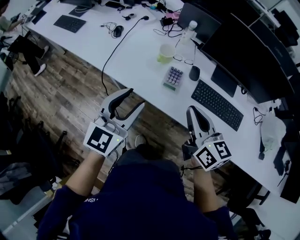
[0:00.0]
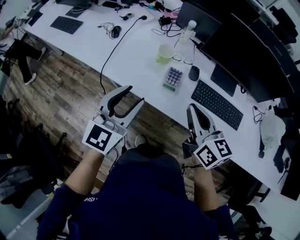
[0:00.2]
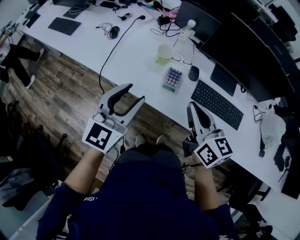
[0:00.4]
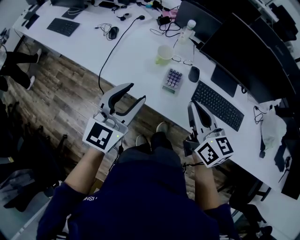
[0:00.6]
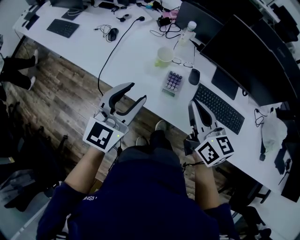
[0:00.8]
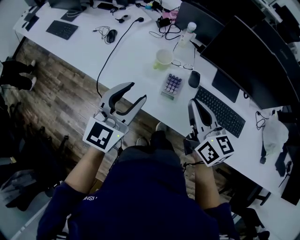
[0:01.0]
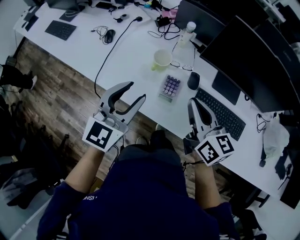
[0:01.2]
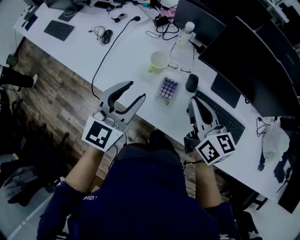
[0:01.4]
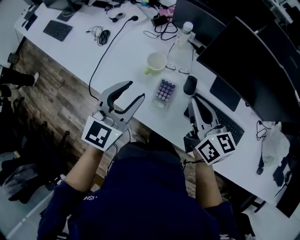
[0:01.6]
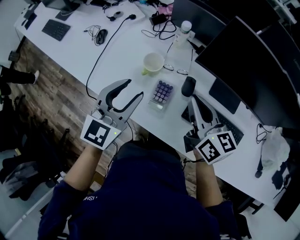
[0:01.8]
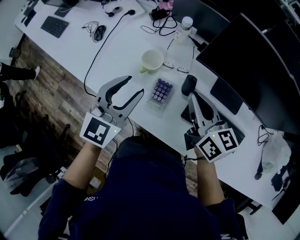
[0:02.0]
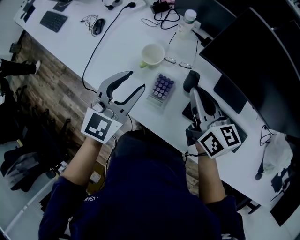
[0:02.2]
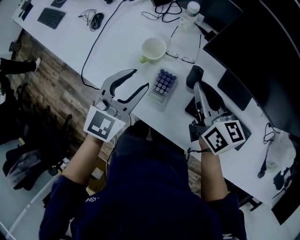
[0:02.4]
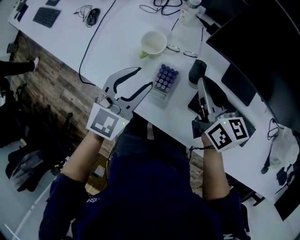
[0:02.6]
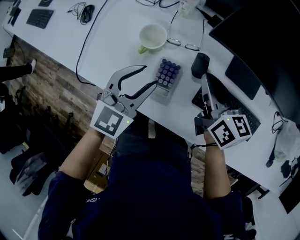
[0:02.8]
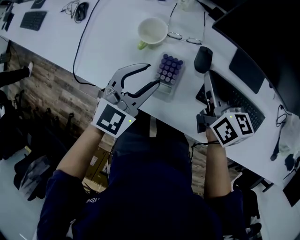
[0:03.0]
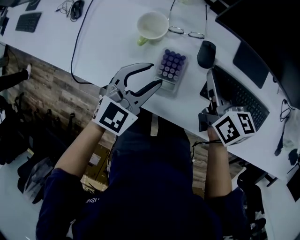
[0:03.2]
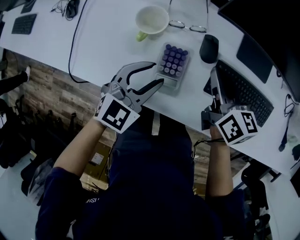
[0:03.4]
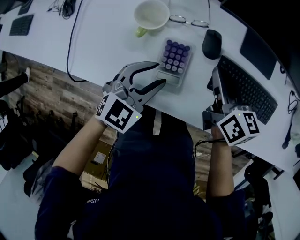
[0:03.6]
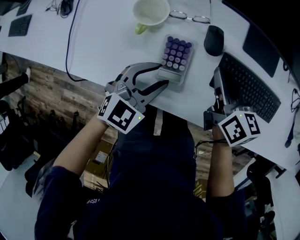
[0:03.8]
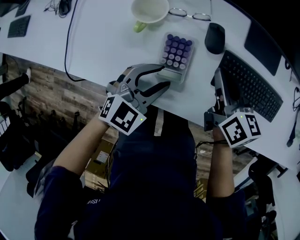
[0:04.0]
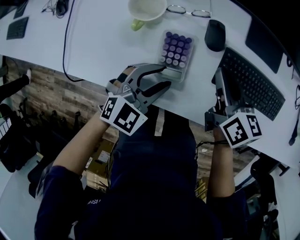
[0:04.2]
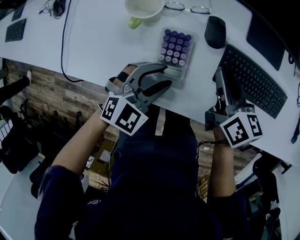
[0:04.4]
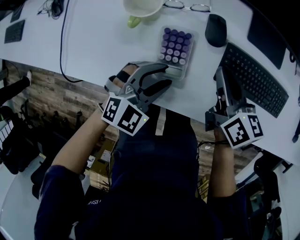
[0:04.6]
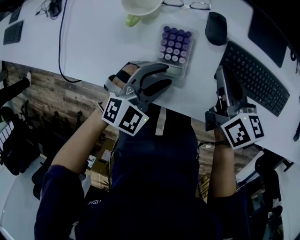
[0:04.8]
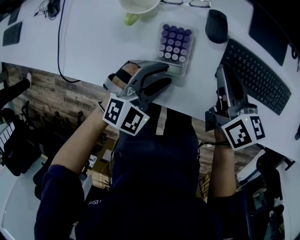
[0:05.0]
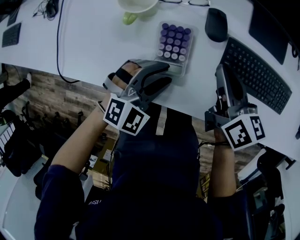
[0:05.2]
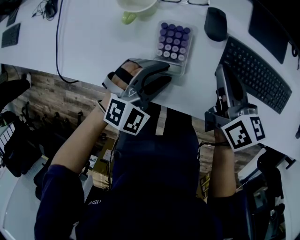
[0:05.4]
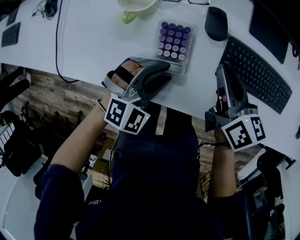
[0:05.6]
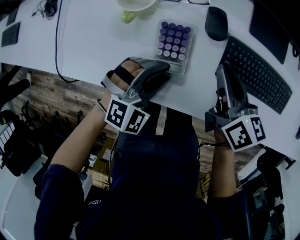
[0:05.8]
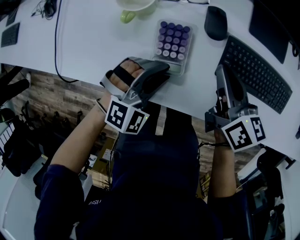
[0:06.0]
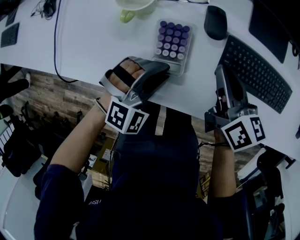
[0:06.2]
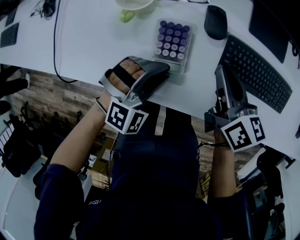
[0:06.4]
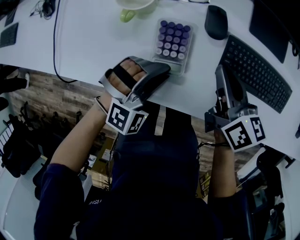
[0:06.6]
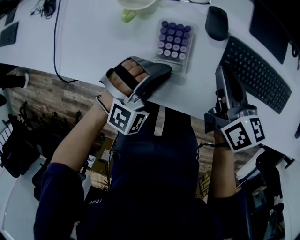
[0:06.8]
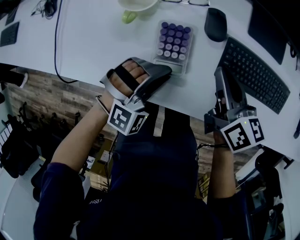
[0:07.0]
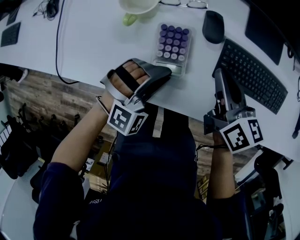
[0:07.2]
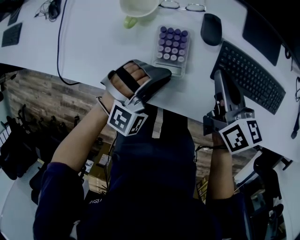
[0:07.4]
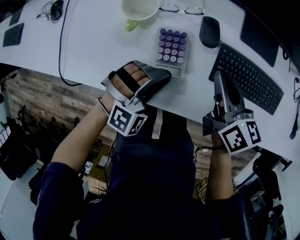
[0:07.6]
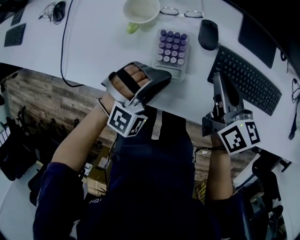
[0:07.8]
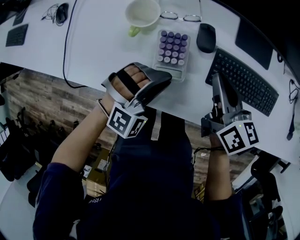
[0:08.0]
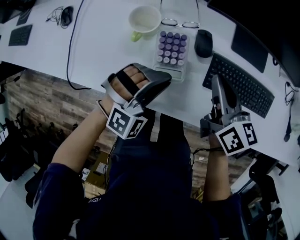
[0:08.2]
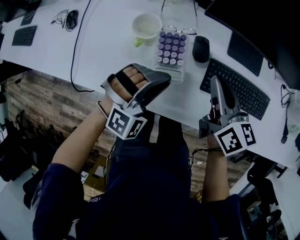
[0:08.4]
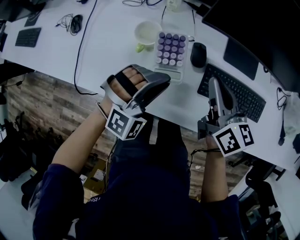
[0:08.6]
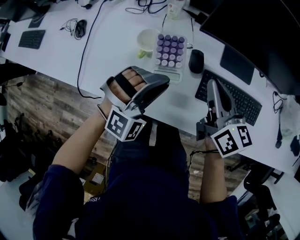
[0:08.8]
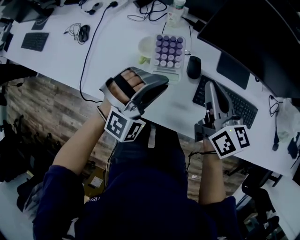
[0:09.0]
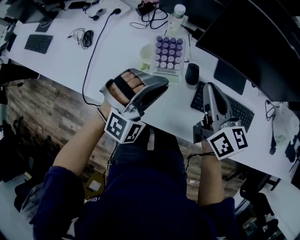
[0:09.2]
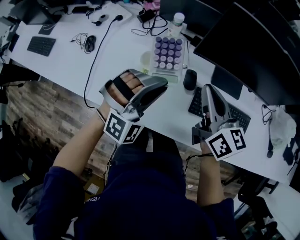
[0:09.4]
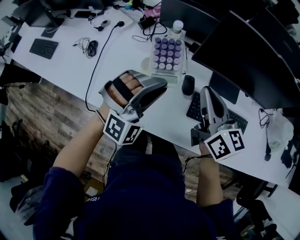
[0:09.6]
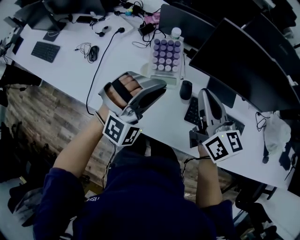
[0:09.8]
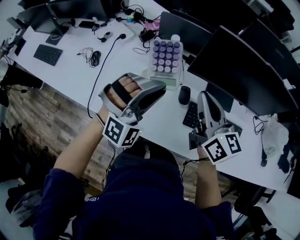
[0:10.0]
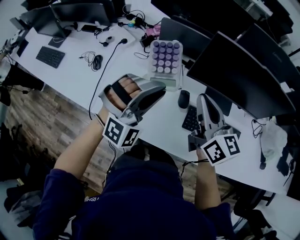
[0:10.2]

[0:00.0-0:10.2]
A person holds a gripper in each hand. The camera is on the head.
0.0 to 1.4 s: The two grippers go approximately 15 cm forward.
1.4 to 3.0 s: The right gripper goes approximately 15 cm downward and forward. The left gripper is displaced downward and to the right by approximately 15 cm, and swivels some 20 degrees.
3.0 to 4.4 s: The left gripper is displaced downward and backward by about 10 cm, and changes its angle by roughly 20 degrees; the right gripper travels downward by roughly 10 cm.
4.4 to 5.8 s: The left gripper turns by roughly 20 degrees.
5.8 to 7.2 s: The grippers move only a little.
7.2 to 8.8 s: The grippers both shift upward by approximately 15 cm.
8.8 to 10.2 s: The grippers both shift upward by roughly 15 cm.

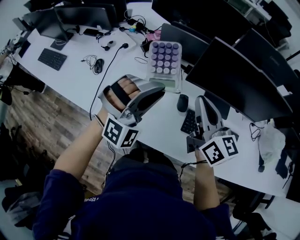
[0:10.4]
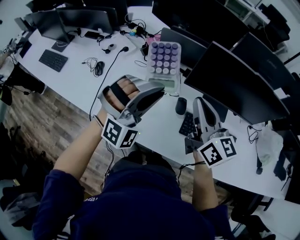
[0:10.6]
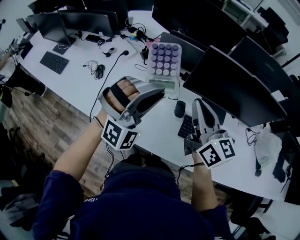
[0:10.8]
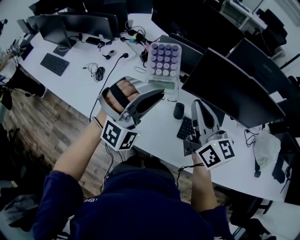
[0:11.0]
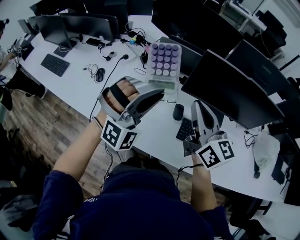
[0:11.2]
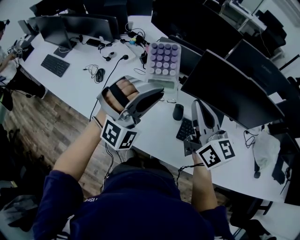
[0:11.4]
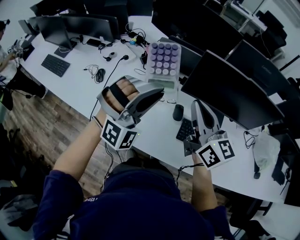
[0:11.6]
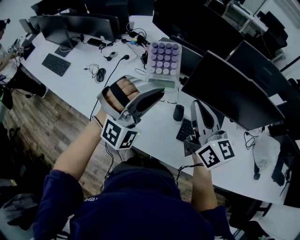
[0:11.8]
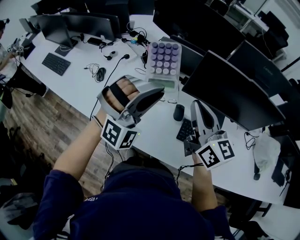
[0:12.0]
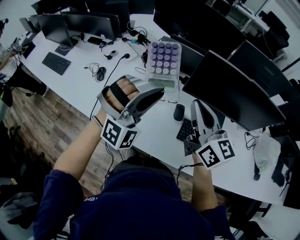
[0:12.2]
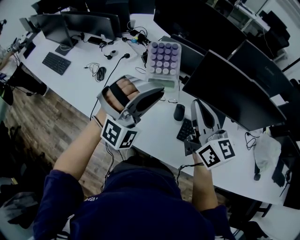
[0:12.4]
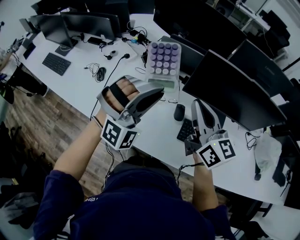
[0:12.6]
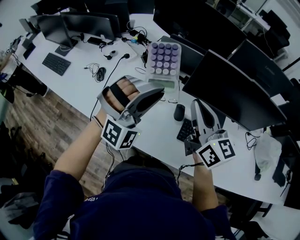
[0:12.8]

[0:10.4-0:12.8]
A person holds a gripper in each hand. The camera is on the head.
10.4 to 11.6 s: The left gripper moves upward, approximately 5 cm.
11.6 to 12.8 s: Neither gripper changes place.

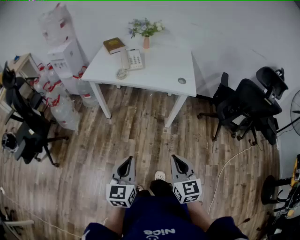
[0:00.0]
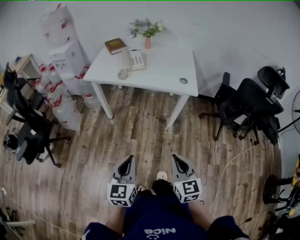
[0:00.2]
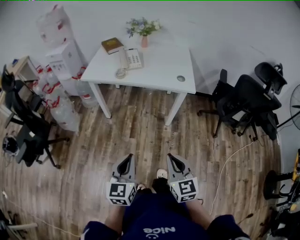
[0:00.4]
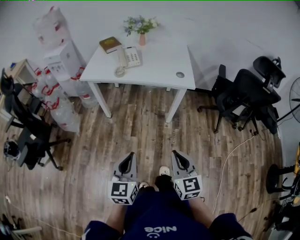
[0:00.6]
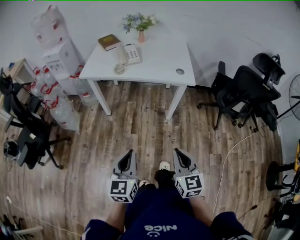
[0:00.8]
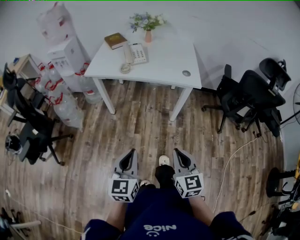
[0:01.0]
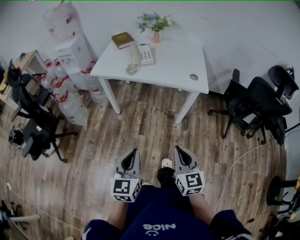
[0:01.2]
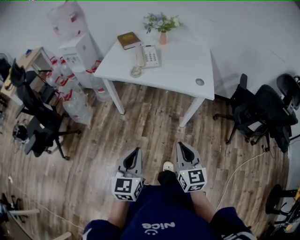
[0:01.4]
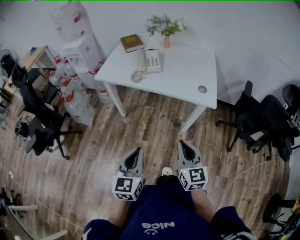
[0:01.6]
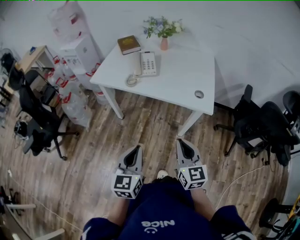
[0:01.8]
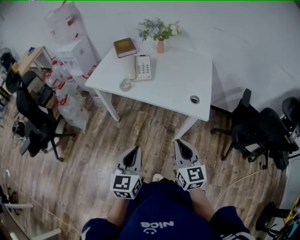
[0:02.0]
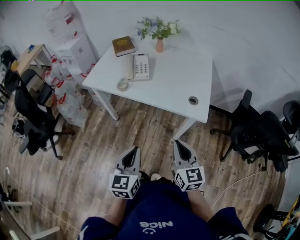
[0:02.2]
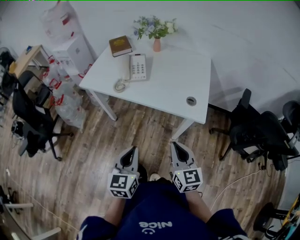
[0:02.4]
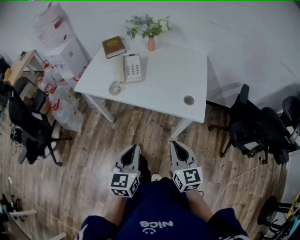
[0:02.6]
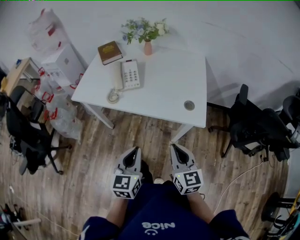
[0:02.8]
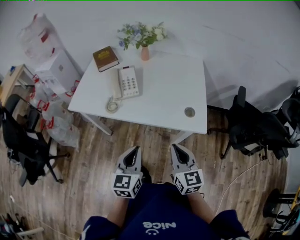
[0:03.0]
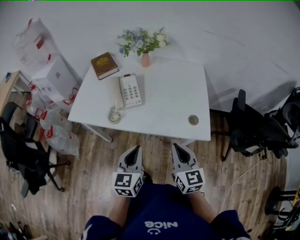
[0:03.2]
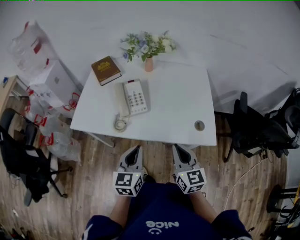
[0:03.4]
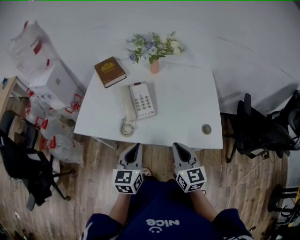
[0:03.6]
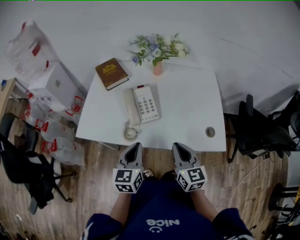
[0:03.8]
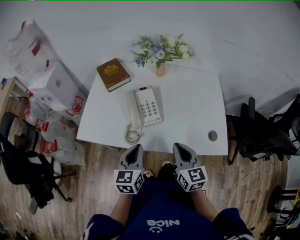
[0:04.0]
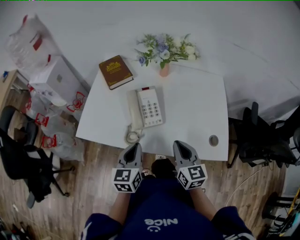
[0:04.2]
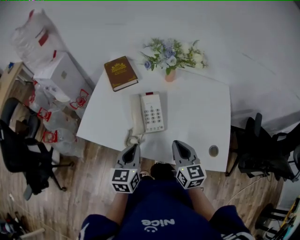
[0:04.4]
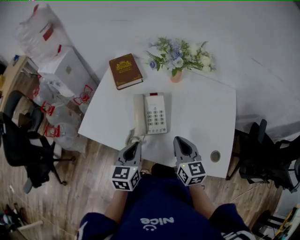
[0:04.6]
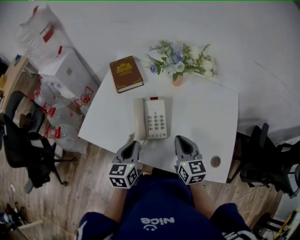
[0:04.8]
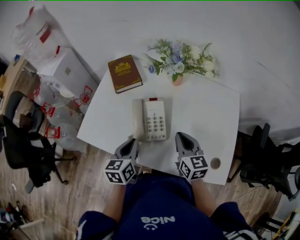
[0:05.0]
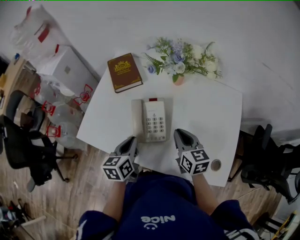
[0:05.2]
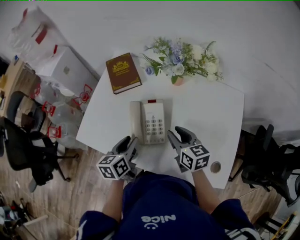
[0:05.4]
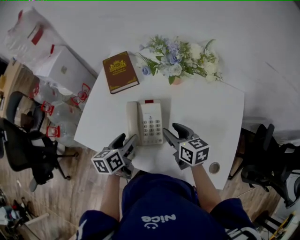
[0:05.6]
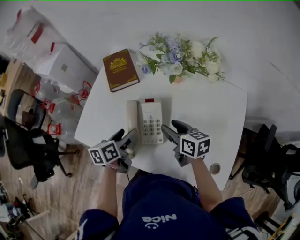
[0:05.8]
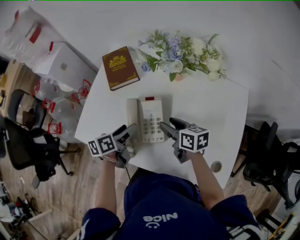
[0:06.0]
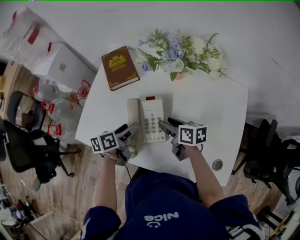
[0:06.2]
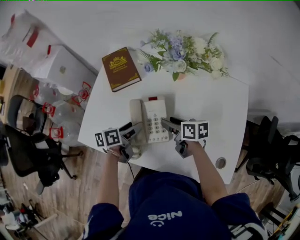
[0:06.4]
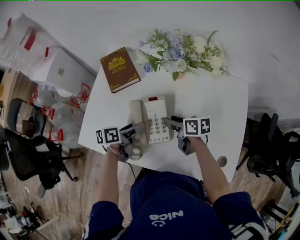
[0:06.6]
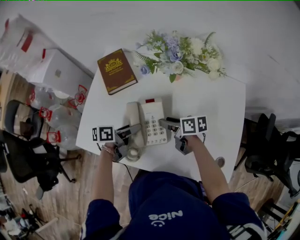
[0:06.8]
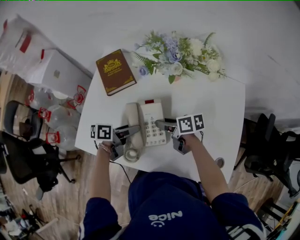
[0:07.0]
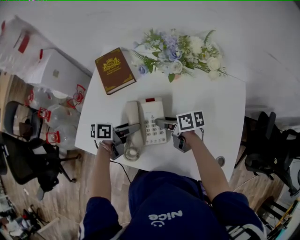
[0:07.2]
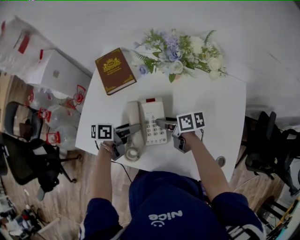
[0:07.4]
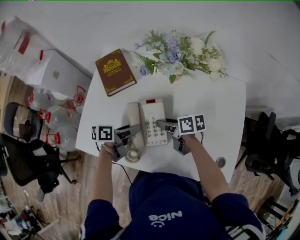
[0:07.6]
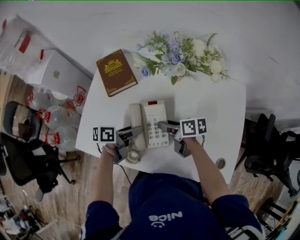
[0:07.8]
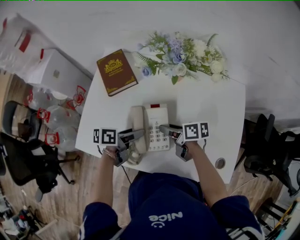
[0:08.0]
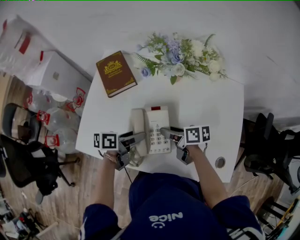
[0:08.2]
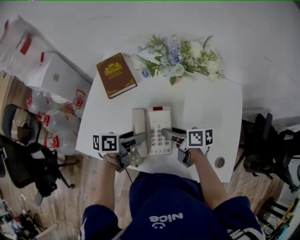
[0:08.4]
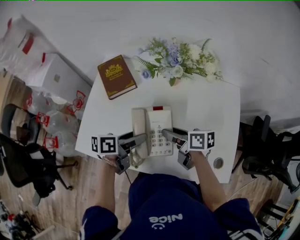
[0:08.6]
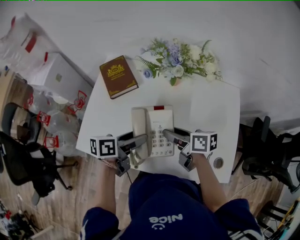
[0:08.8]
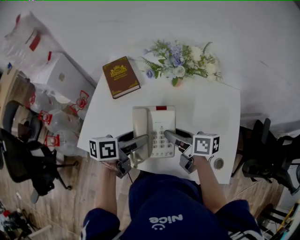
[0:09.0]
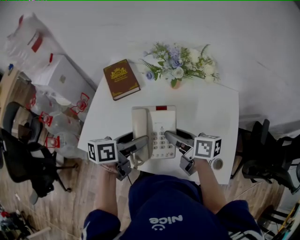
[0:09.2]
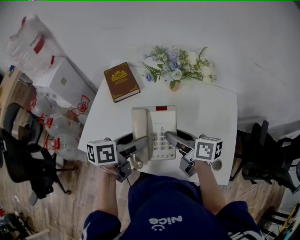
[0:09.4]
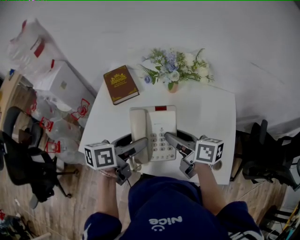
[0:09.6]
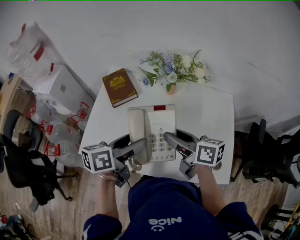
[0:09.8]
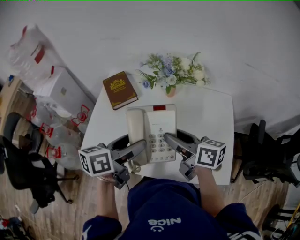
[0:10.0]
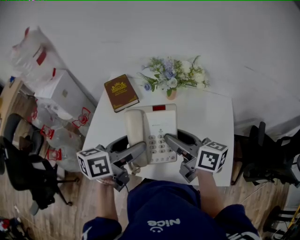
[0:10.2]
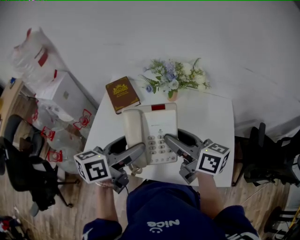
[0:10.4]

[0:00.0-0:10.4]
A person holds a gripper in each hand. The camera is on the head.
0.0 to 1.4 s: Both grippers move forward, approximately 10 cm.
1.4 to 3.0 s: The right gripper is displaced forward by some 25 cm. The left gripper shifts roughly 30 cm forward and to the right.
3.0 to 4.4 s: The grippers both shift forward and to the left by approximately 30 cm.
4.4 to 6.0 s: The grippers both shift forward and downward by roughly 20 cm. The right gripper rotates roughly 40 degrees, and opens. The left gripper changes its angle by some 40 degrees, and opens up.
6.0 to 7.4 s: The right gripper changes place by some 5 cm, and rotates some 20 degrees. Meanwhile the left gripper changes its angle by some 30 degrees.
7.4 to 9.0 s: The two grippers go roughly 10 cm upward.
9.0 to 10.4 s: Both grippers travel together upward, about 15 cm. The right gripper changes its angle by some 30 degrees. Meanwhile the left gripper rotates roughly 20 degrees.

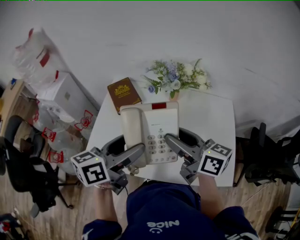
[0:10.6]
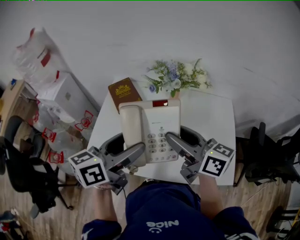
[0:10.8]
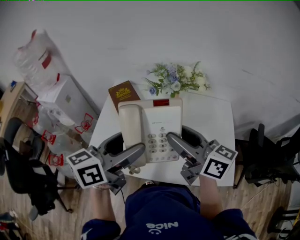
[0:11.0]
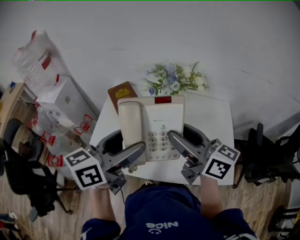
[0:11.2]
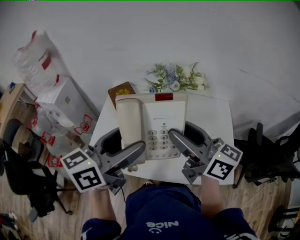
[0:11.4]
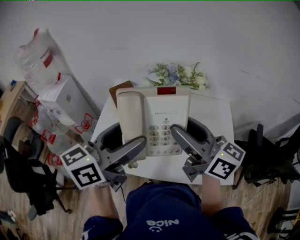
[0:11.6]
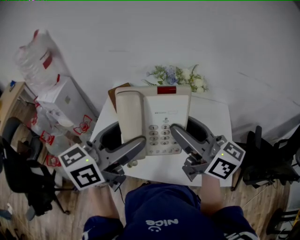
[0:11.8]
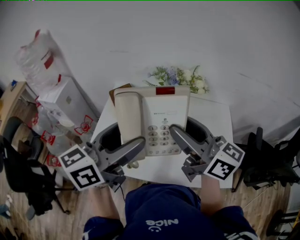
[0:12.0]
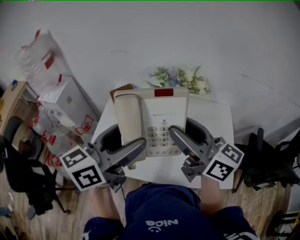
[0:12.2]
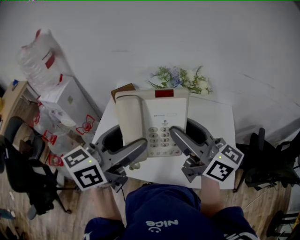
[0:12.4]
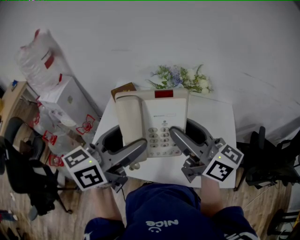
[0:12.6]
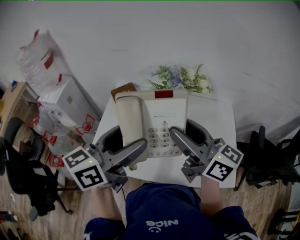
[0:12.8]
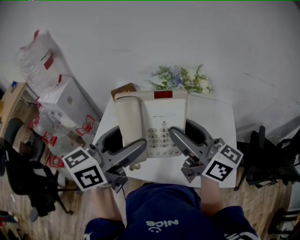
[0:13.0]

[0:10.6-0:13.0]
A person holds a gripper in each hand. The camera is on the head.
10.6 to 11.8 s: Both grippers travel together upward, some 10 cm.
11.8 to 13.0 s: The grippers make only small movements.
